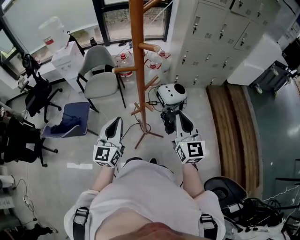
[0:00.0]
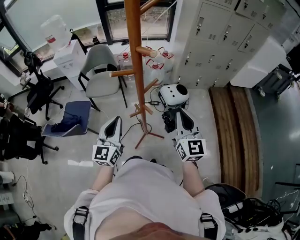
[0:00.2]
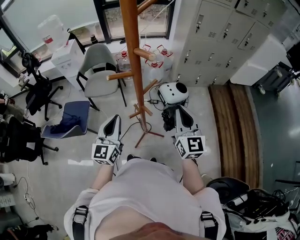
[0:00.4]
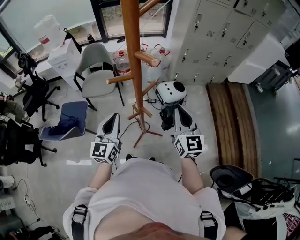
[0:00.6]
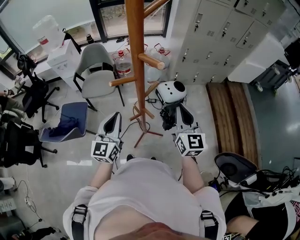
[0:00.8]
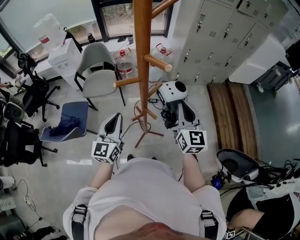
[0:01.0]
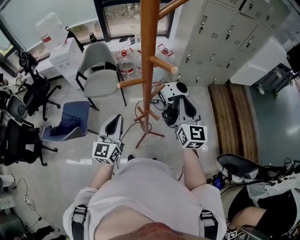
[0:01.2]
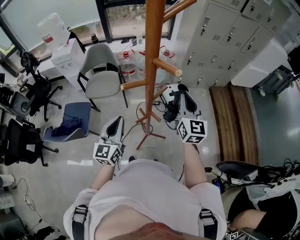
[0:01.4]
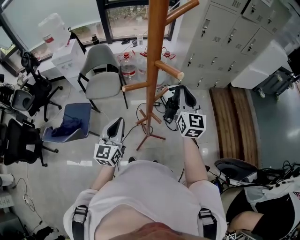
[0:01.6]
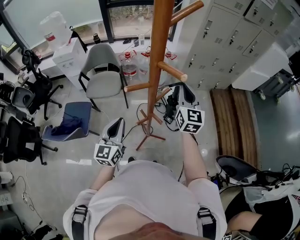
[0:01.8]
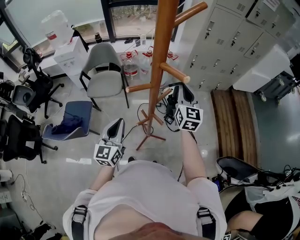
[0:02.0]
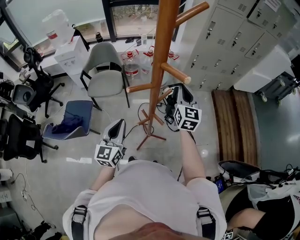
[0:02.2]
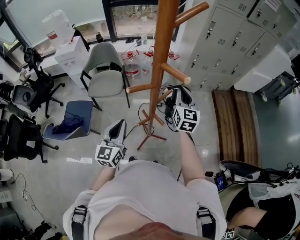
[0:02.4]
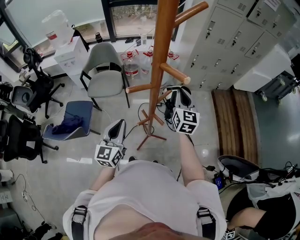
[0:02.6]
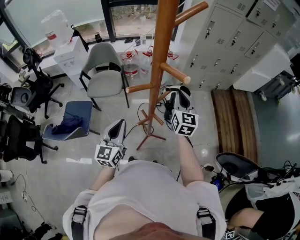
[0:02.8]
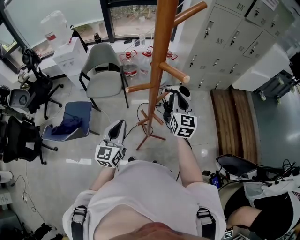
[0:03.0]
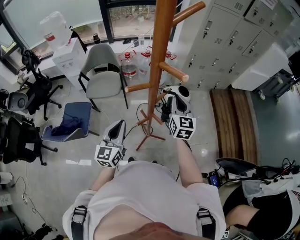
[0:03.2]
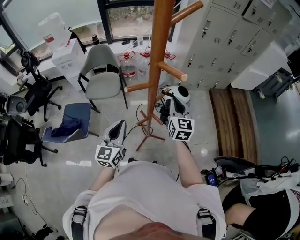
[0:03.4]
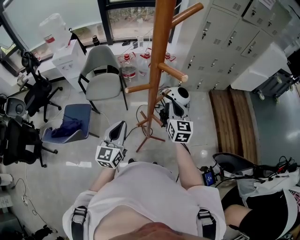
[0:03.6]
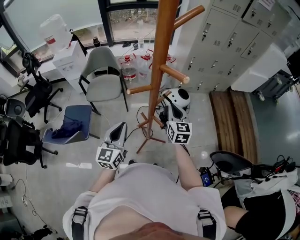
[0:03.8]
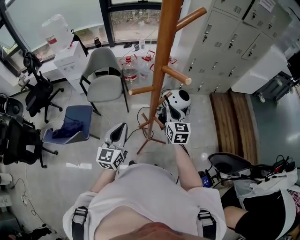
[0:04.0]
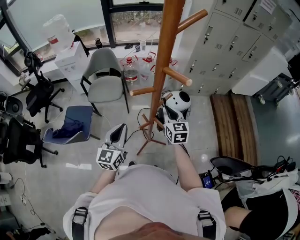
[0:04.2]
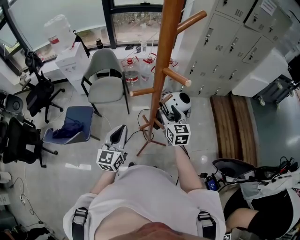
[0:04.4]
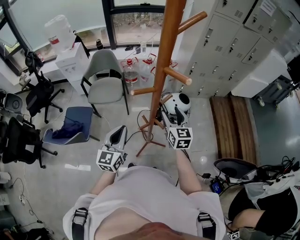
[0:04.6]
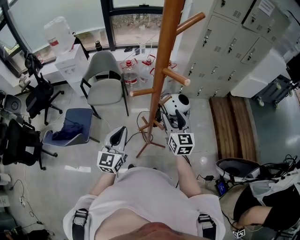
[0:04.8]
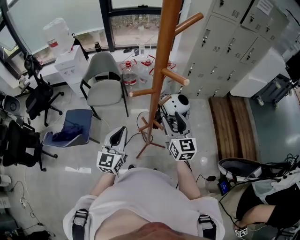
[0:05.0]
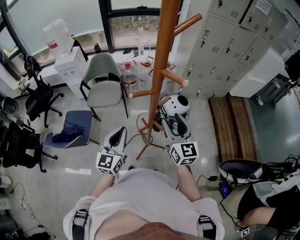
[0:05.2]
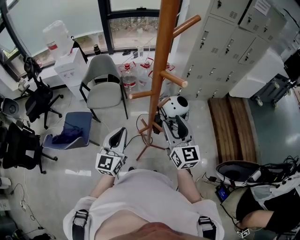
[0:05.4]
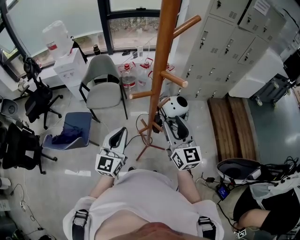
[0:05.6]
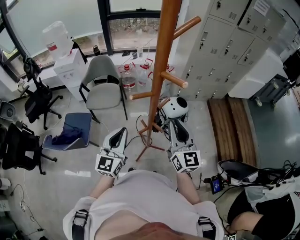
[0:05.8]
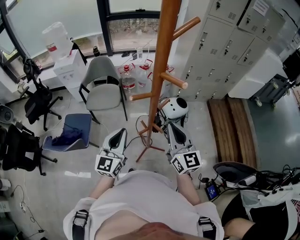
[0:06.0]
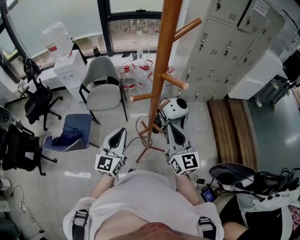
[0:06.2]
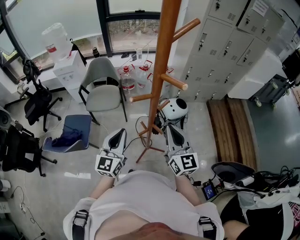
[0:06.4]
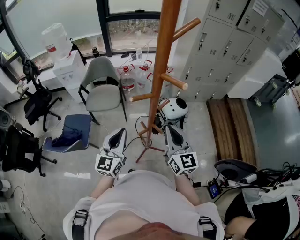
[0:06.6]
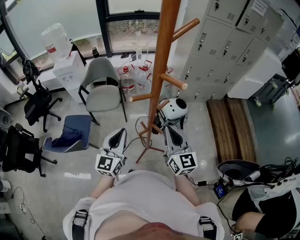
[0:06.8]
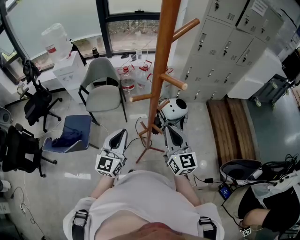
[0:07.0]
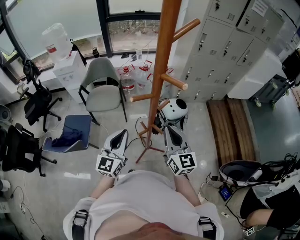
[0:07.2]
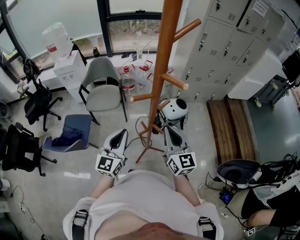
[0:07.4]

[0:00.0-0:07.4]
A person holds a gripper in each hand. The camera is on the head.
0:00.0 to 0:01.4: The right gripper moves forward, some 15 cm. The left gripper moves forward, about 5 cm.
0:01.4 to 0:03.0: The right gripper is displaced downward by roughly 5 cm.
0:03.0 to 0:04.4: The right gripper moves downward, about 5 cm, and opens up.
0:04.4 to 0:06.0: The right gripper travels upward and backward by approximately 15 cm, and closes its fingers.
0:06.0 to 0:07.4: There are only small adjustments of the grippers.

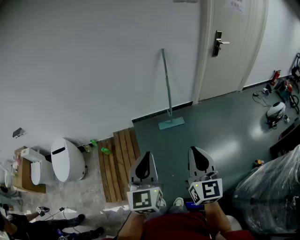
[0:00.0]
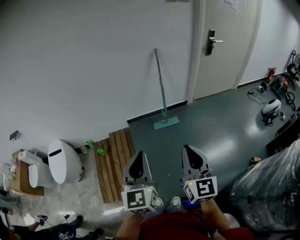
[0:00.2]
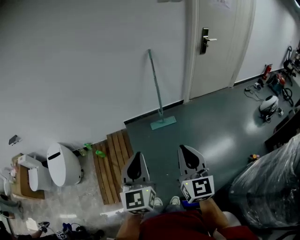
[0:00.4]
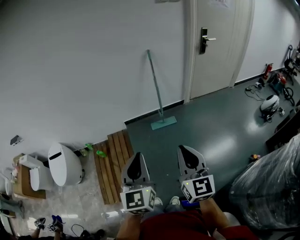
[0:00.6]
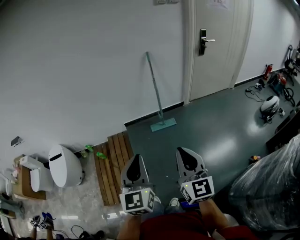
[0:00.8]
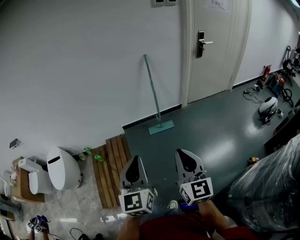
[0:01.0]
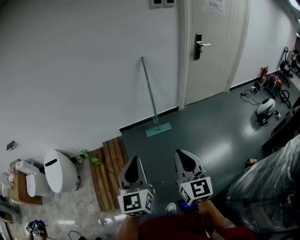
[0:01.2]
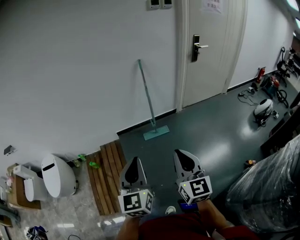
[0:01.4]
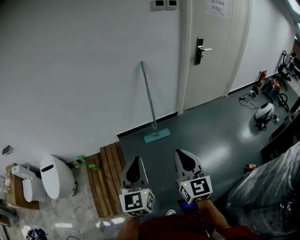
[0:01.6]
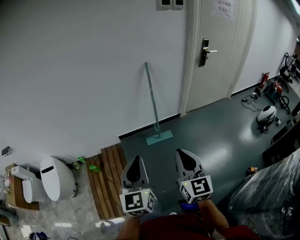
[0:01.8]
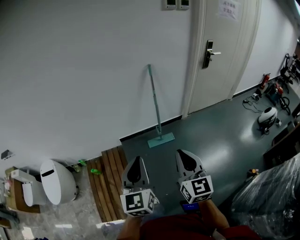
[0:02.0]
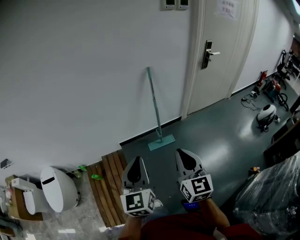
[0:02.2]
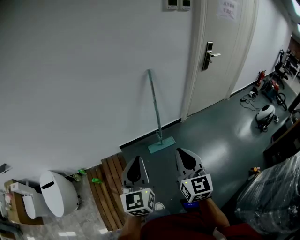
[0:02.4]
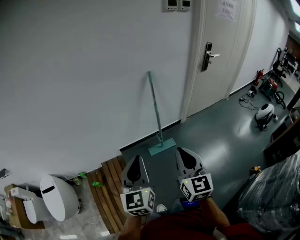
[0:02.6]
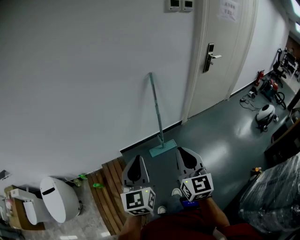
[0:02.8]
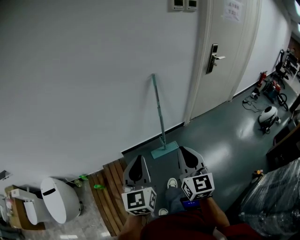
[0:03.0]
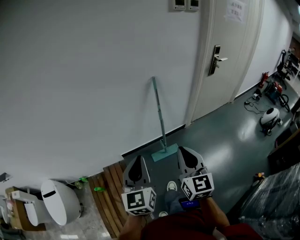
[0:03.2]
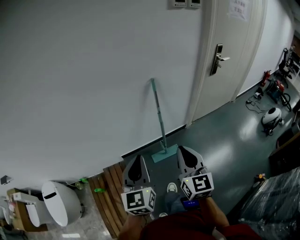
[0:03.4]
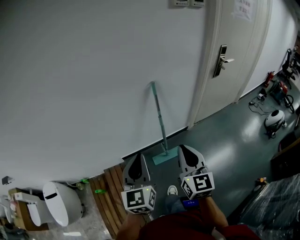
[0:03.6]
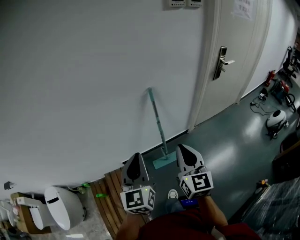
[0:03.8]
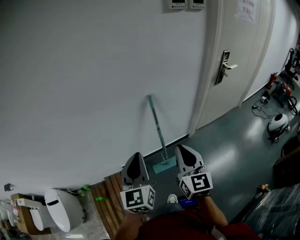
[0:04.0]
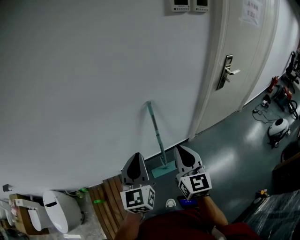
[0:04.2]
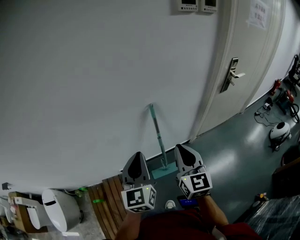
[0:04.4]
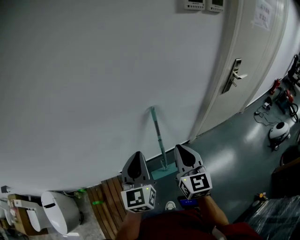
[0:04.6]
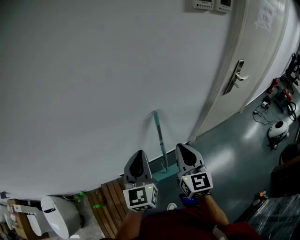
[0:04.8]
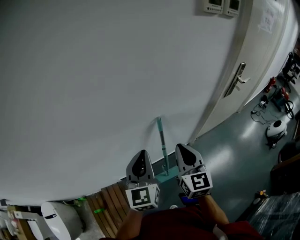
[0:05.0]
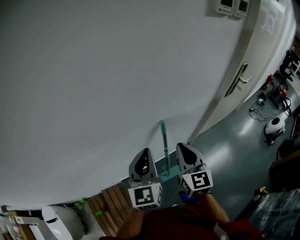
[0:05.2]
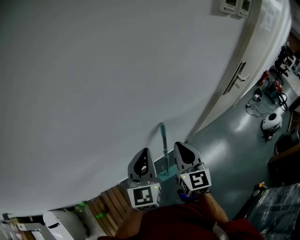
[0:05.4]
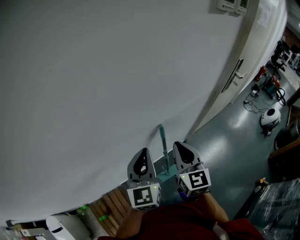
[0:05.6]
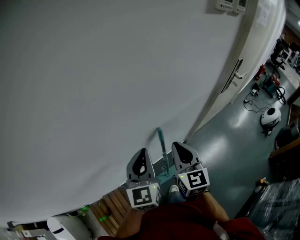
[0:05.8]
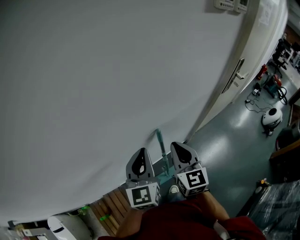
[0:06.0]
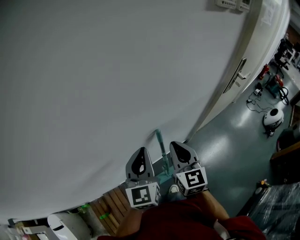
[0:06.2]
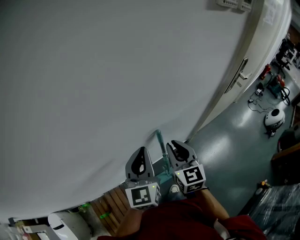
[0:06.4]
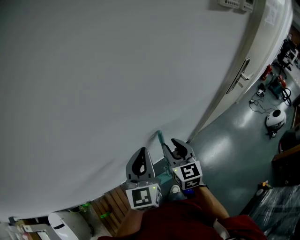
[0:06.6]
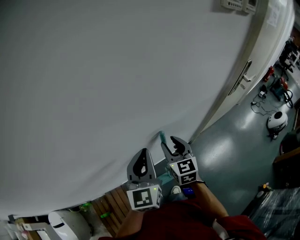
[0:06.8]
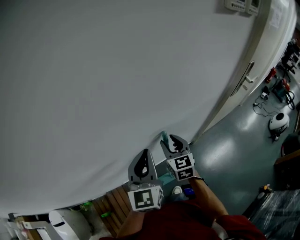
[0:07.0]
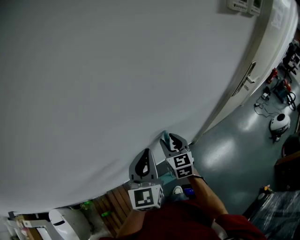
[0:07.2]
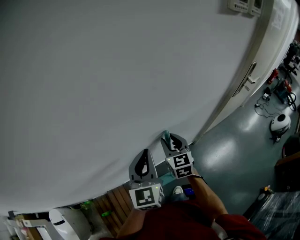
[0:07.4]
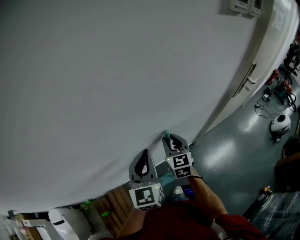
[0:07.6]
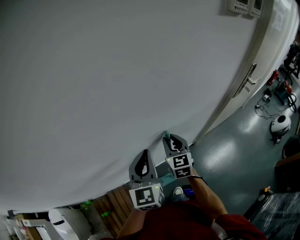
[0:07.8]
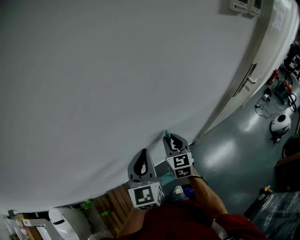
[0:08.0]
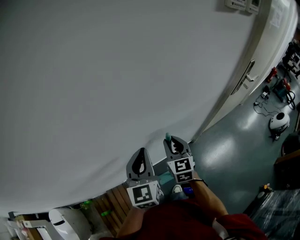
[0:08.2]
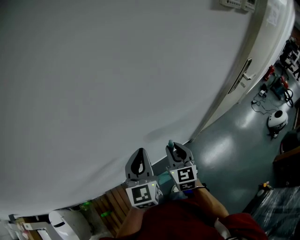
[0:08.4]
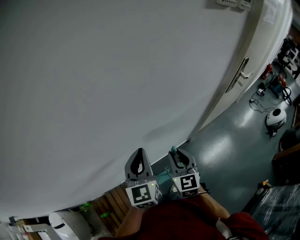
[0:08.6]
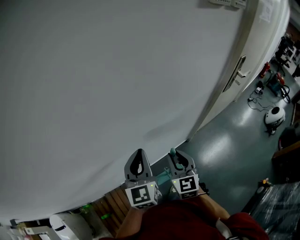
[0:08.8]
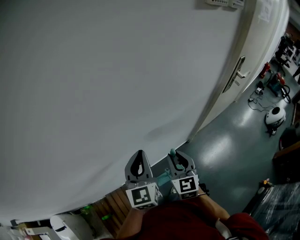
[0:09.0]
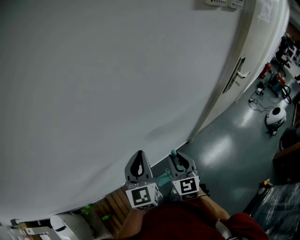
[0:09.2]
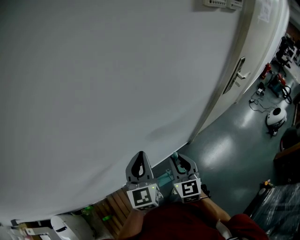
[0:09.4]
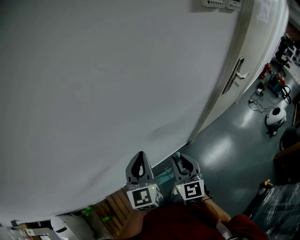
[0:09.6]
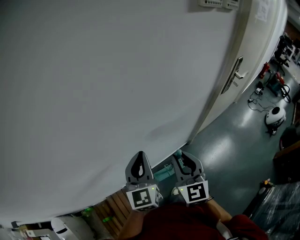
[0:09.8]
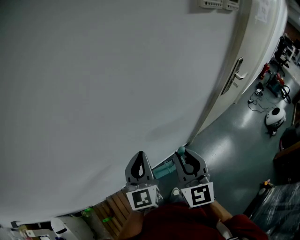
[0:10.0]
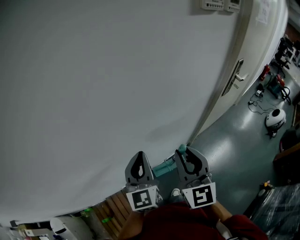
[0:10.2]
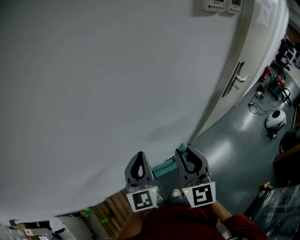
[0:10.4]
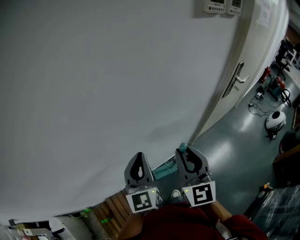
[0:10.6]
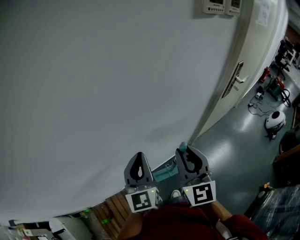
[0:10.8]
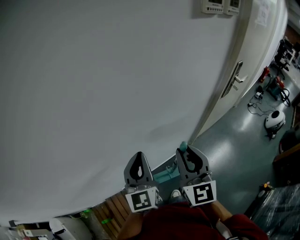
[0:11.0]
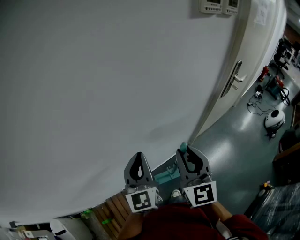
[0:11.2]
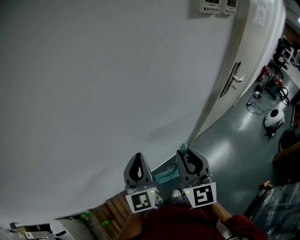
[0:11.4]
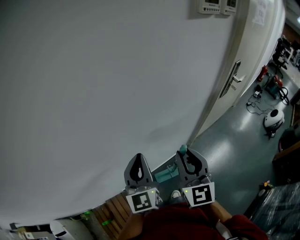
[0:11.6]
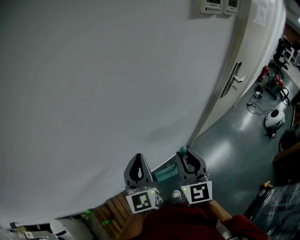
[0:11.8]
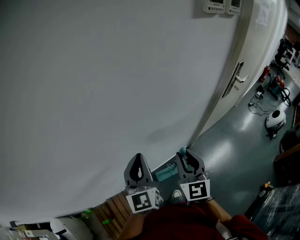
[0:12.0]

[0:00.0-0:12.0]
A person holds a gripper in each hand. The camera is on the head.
0:00.0 to 0:01.6: The two grippers go about 10 cm forward and to the right.
0:01.6 to 0:03.0: The two grippers go roughly 25 cm forward.
0:03.0 to 0:04.4: The two grippers go some 30 cm forward.
0:04.4 to 0:06.0: Both grippers move forward, some 20 cm.
0:06.0 to 0:07.6: The right gripper moves downward and forward, some 10 cm, and opens.
0:07.6 to 0:09.0: The right gripper moves backward, approximately 10 cm.
0:09.0 to 0:10.4: The right gripper heads upward, covering about 15 cm.
0:10.4 to 0:12.0: The right gripper heads downward, covering roughly 5 cm.

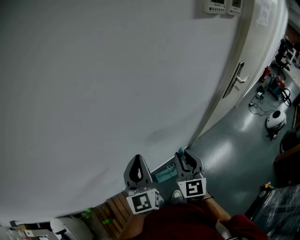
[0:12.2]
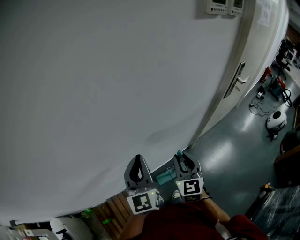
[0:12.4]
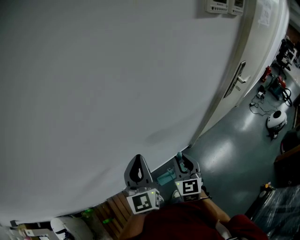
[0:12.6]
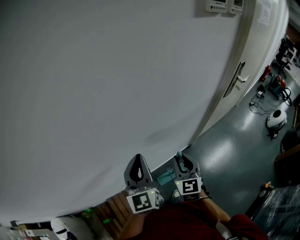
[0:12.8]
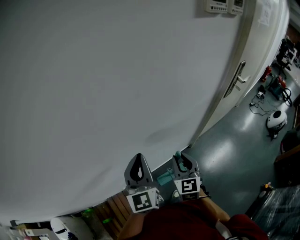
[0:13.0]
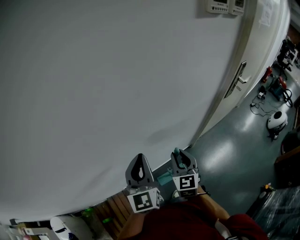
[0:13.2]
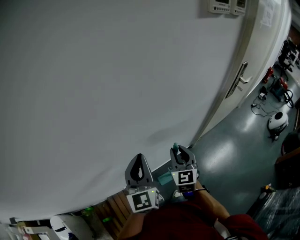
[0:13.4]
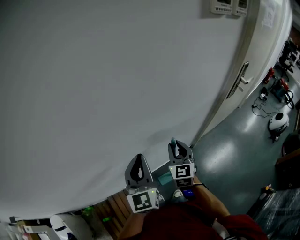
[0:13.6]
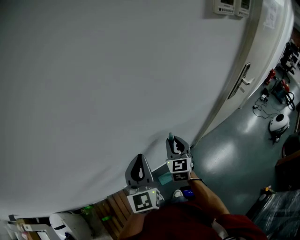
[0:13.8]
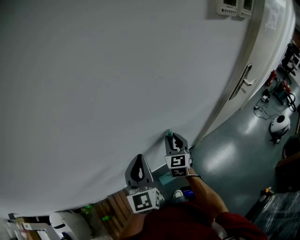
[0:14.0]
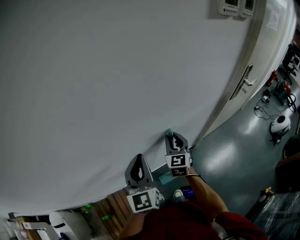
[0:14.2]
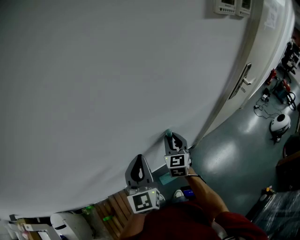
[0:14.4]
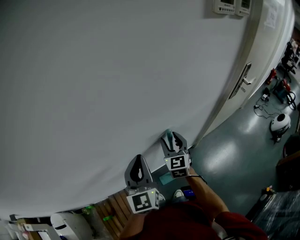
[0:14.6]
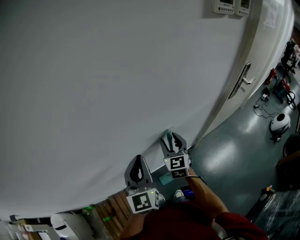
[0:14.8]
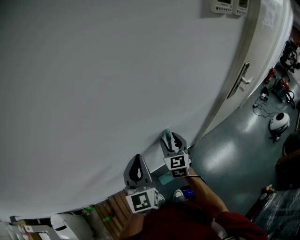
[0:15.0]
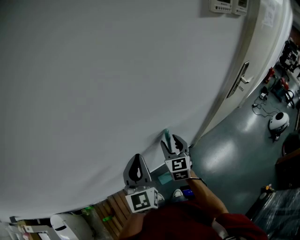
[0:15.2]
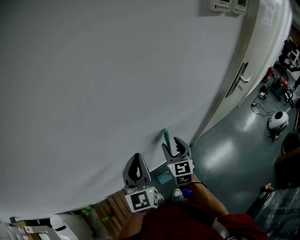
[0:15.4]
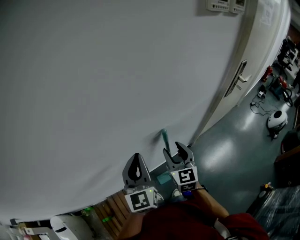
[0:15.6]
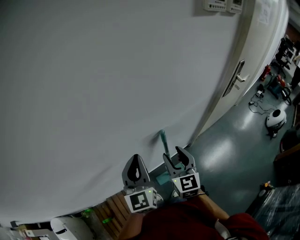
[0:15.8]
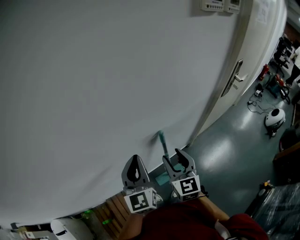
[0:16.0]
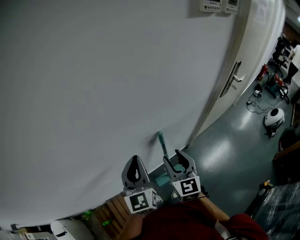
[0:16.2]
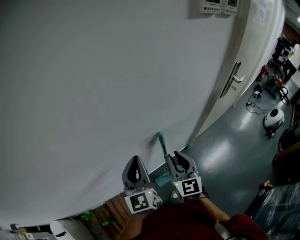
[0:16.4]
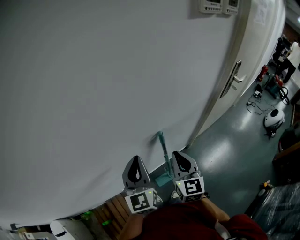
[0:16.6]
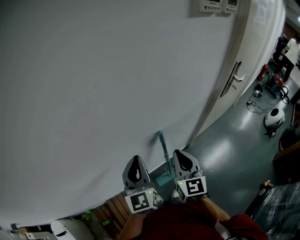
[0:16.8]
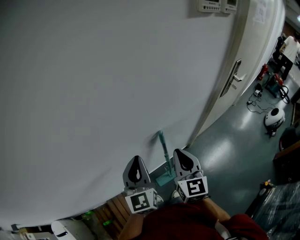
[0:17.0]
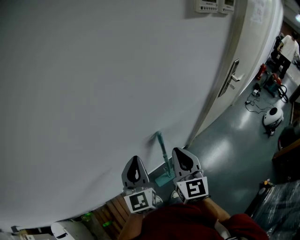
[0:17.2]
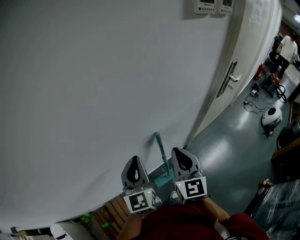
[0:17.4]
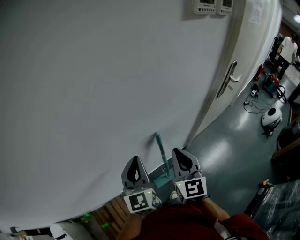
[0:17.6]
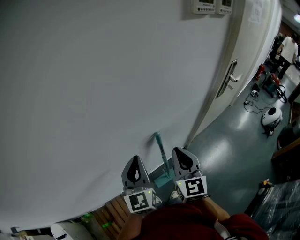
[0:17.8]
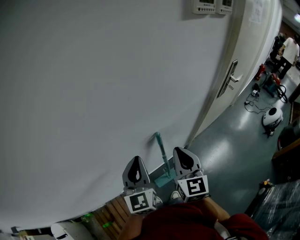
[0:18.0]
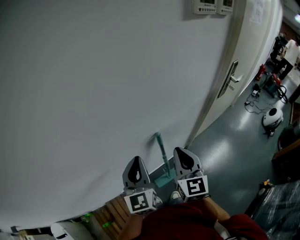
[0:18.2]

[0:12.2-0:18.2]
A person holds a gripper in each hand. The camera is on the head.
0:12.2 to 0:13.8: The right gripper moves forward and downward, approximately 10 cm.
0:13.8 to 0:15.2: The right gripper opens its fingers.
0:15.2 to 0:16.6: The right gripper moves backward and upward, roughly 10 cm, and closes its fingers.
0:16.6 to 0:18.2: The grippers stay close to where they were, moving slightly.
